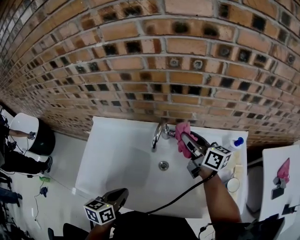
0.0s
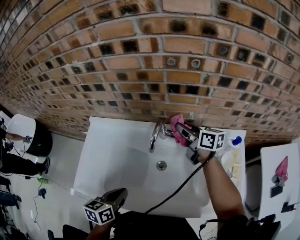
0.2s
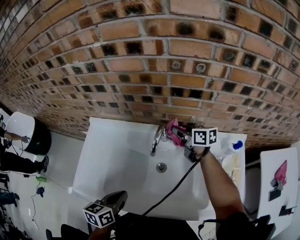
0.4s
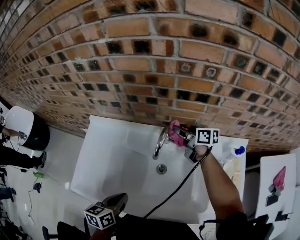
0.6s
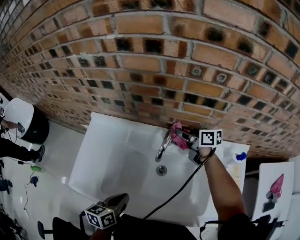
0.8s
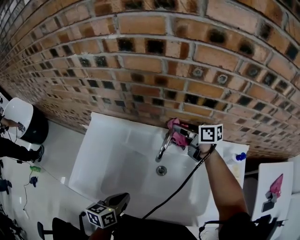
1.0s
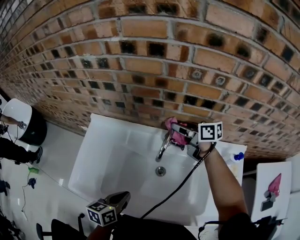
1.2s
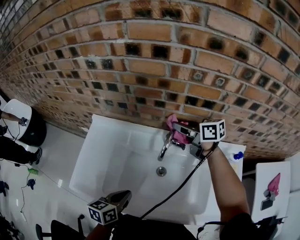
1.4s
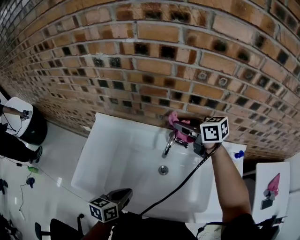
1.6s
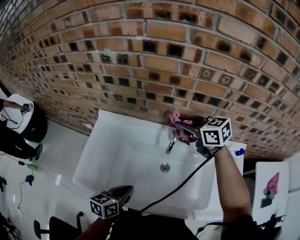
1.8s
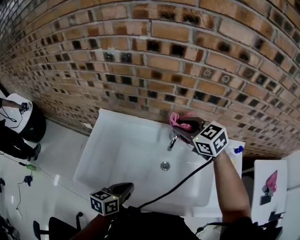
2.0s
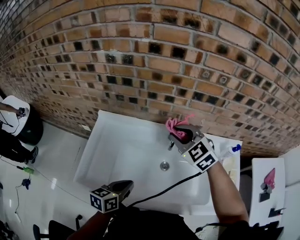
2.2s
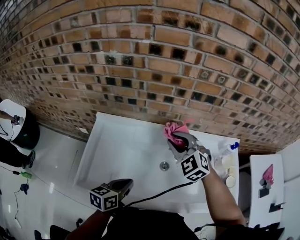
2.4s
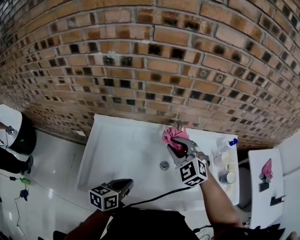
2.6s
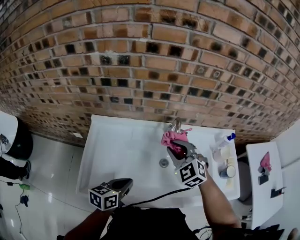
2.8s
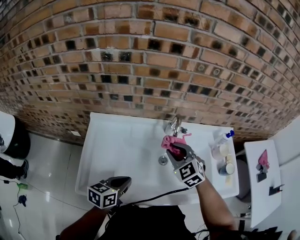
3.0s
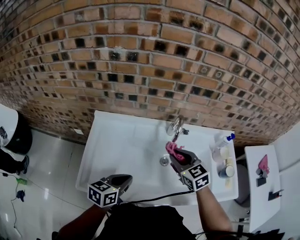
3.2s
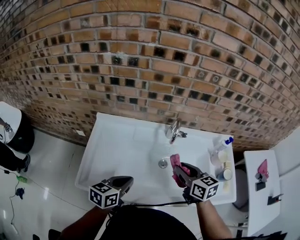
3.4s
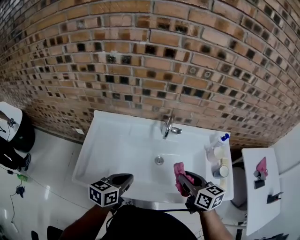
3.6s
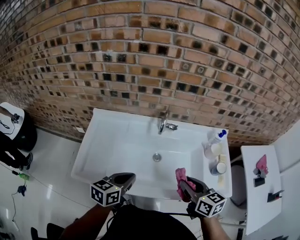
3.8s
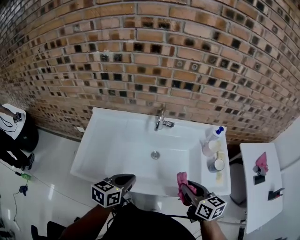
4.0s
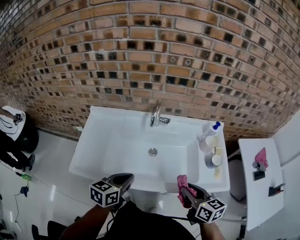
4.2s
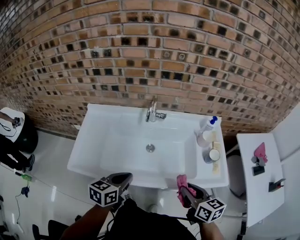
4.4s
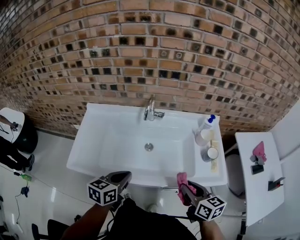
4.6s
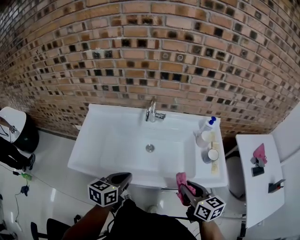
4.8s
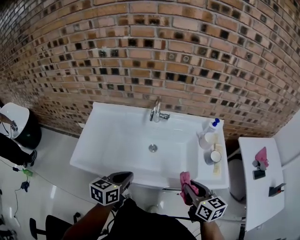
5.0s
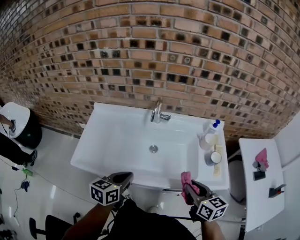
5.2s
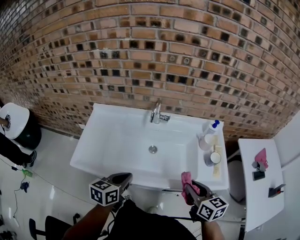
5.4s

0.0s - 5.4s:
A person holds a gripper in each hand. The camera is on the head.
0.0s - 1.4s: The right gripper travels forward and to the left by some 10 cm, and turns by roughly 30 degrees.
1.4s - 2.8s: The left gripper changes place by about 5 cm. Meanwhile the right gripper changes place by some 20 cm, and twists roughly 60 degrees counterclockwise, seen from behind.
2.8s - 4.0s: The left gripper heads to the right and backward, covering some 10 cm; the right gripper heads backward and to the right, covering roughly 30 cm, and twists some 60 degrees clockwise, seen from behind.
4.0s - 5.4s: The right gripper shifts some 5 cm to the right.

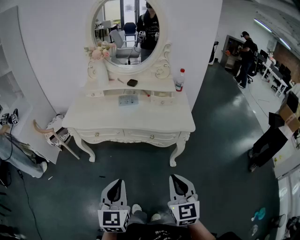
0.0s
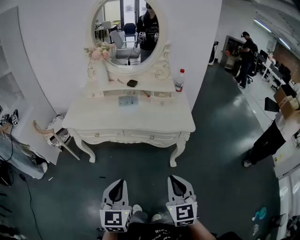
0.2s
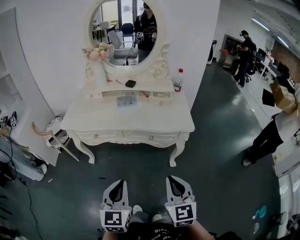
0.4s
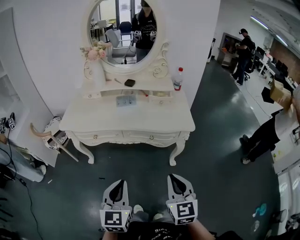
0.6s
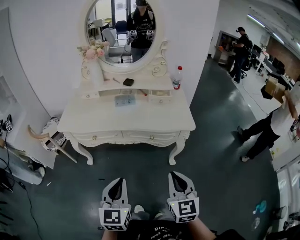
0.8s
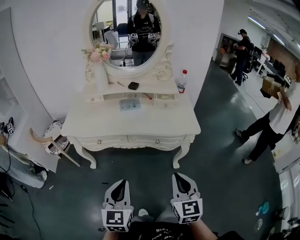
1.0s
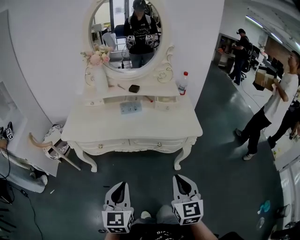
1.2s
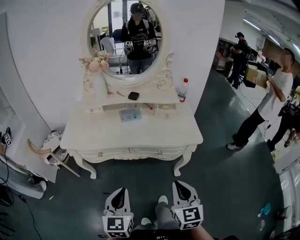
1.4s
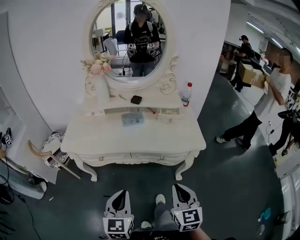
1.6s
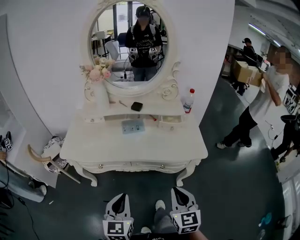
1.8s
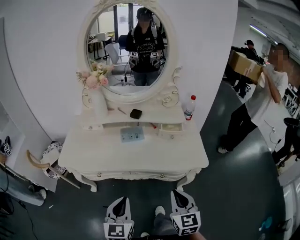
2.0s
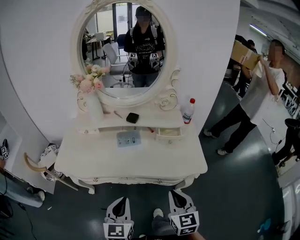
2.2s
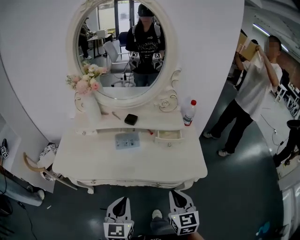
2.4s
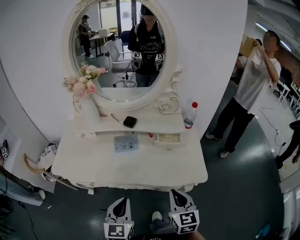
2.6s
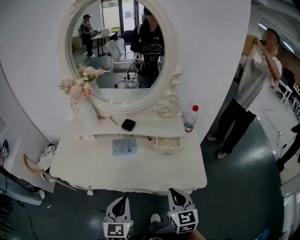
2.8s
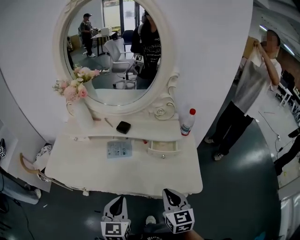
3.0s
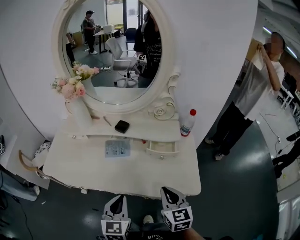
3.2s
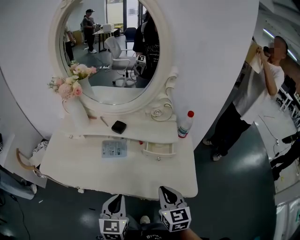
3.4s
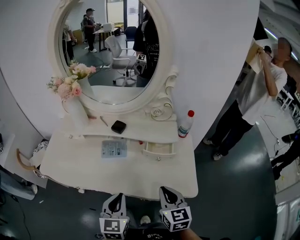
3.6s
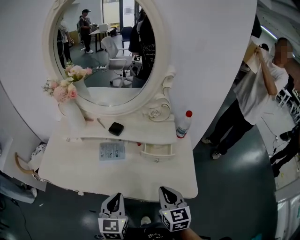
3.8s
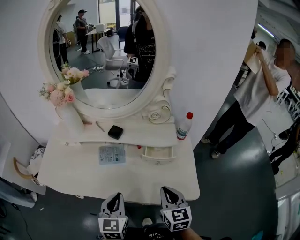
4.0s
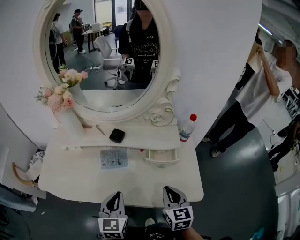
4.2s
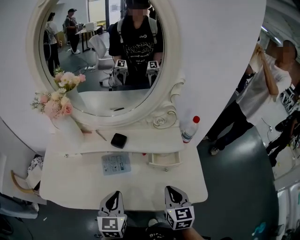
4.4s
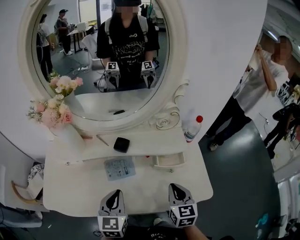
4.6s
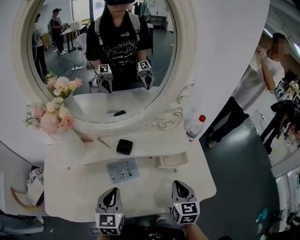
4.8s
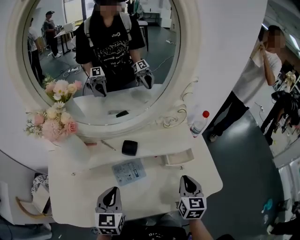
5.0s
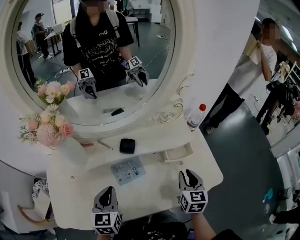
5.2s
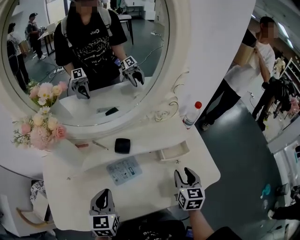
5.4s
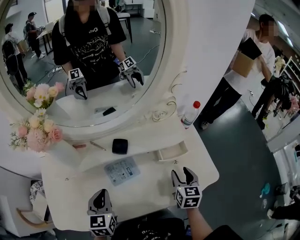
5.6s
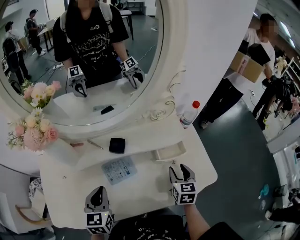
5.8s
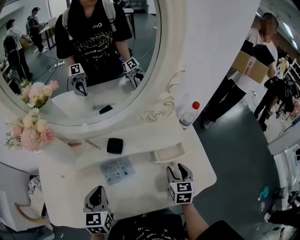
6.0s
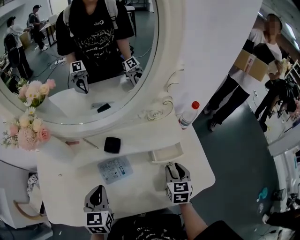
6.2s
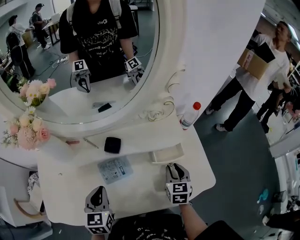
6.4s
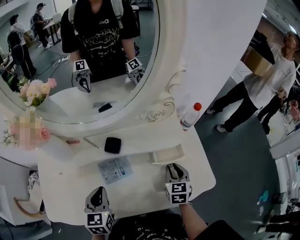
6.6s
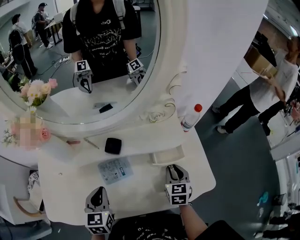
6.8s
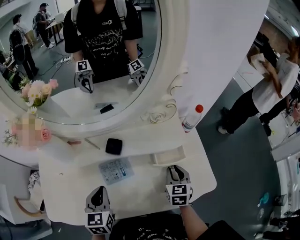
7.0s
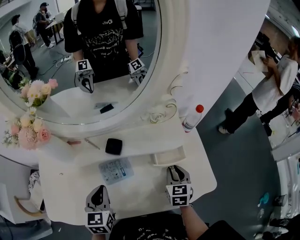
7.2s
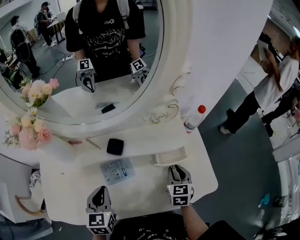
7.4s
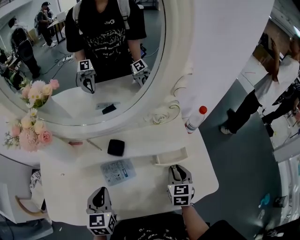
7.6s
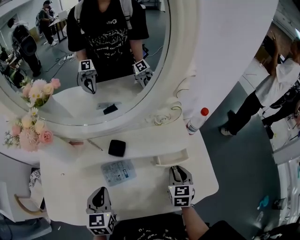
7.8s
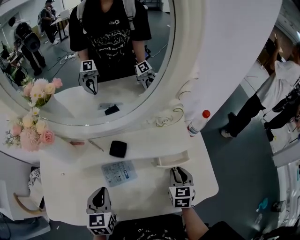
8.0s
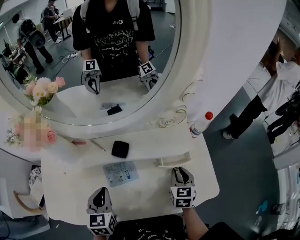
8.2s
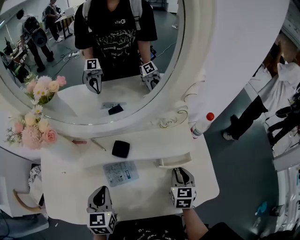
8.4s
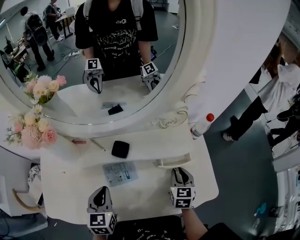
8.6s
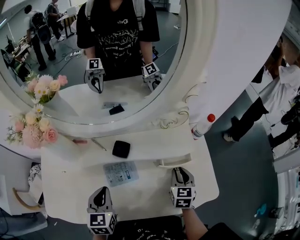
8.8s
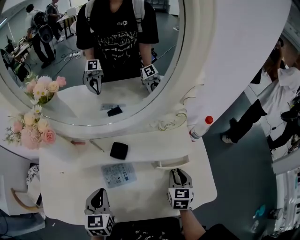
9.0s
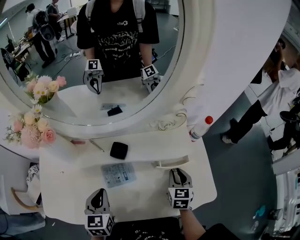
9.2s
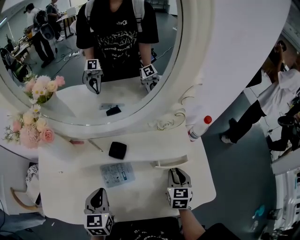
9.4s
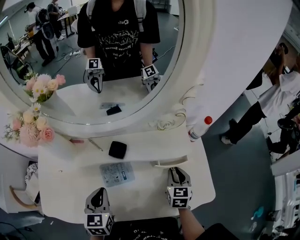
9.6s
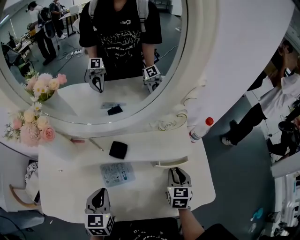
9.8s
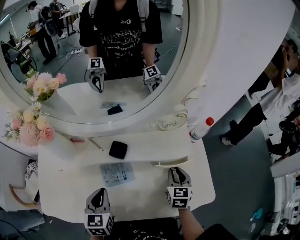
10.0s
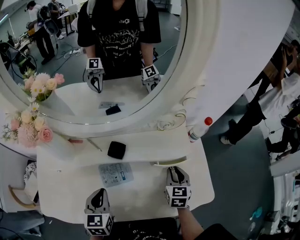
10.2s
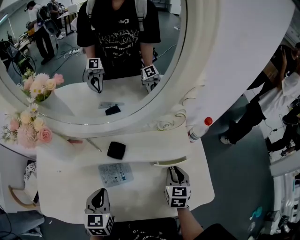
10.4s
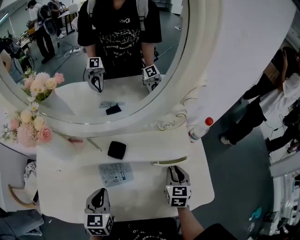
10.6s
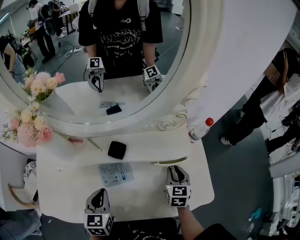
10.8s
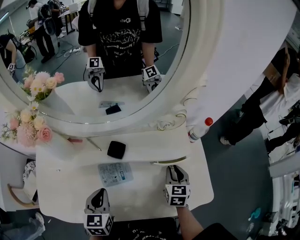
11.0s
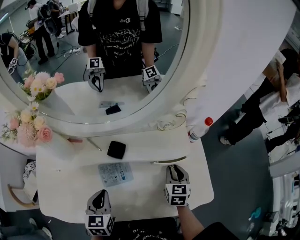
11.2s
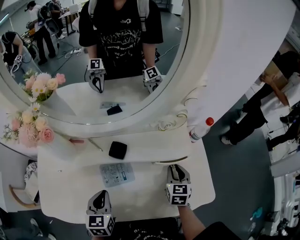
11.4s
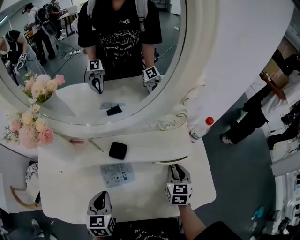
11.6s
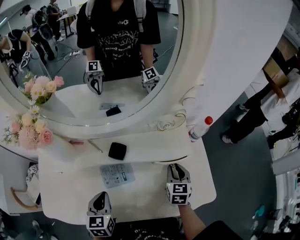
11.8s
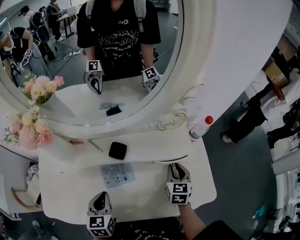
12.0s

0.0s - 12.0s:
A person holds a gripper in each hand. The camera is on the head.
0.0s - 1.6s: The grippers both shift forward and to the left by approximately 10 cm.
1.6s - 3.0s: The right gripper travels forward by some 25 cm; the left gripper moves forward and to the right, some 25 cm.
3.0s - 4.4s: Both grippers move forward, roughly 10 cm.
4.4s - 6.0s: The right gripper shifts some 10 cm forward and downward, rotates roughly 20 degrees, and opens up. Meanwhile the left gripper heads to the left and forward, covering roughly 15 cm.
6.0s - 7.6s: The right gripper closes up.
7.6s - 12.0s: The grippers make only small movements.

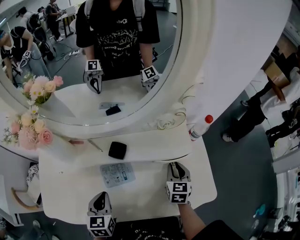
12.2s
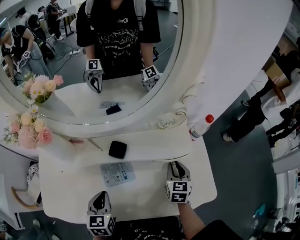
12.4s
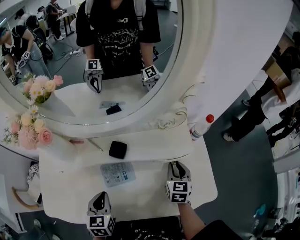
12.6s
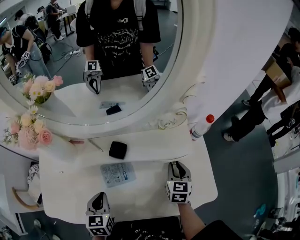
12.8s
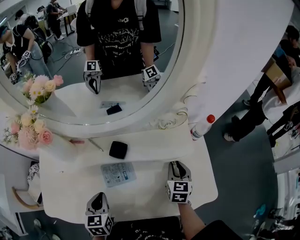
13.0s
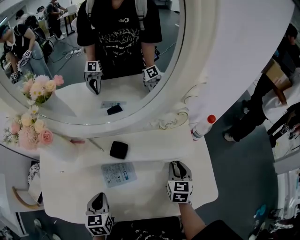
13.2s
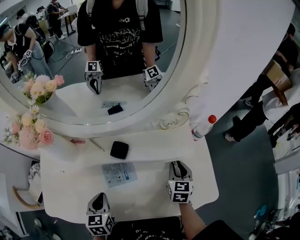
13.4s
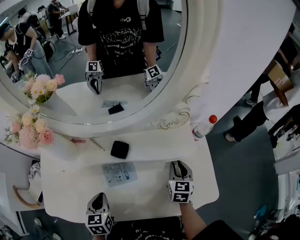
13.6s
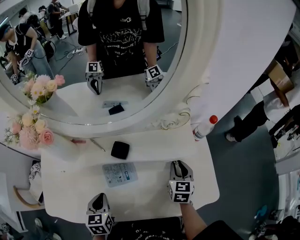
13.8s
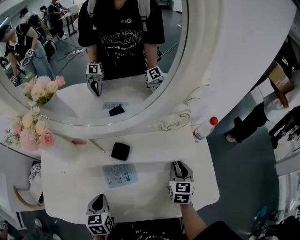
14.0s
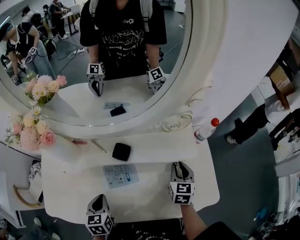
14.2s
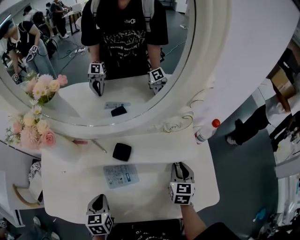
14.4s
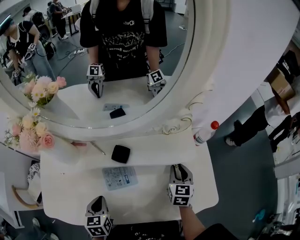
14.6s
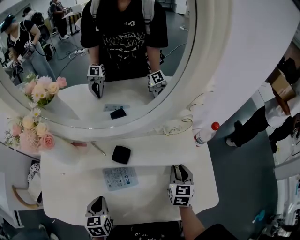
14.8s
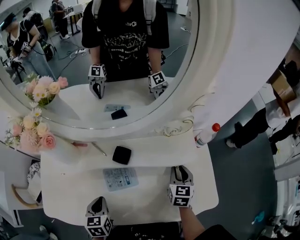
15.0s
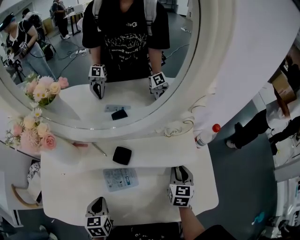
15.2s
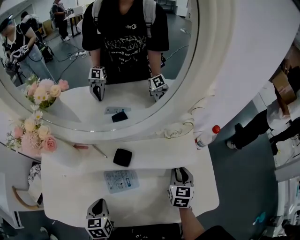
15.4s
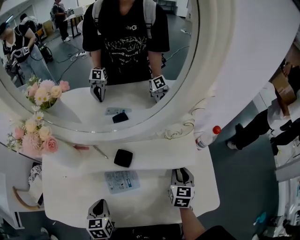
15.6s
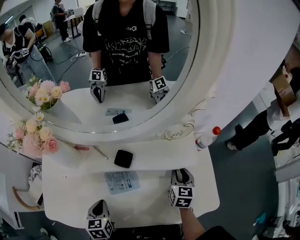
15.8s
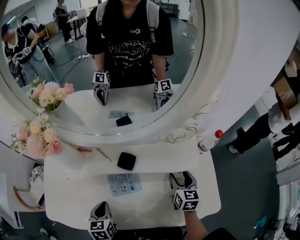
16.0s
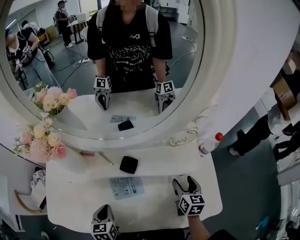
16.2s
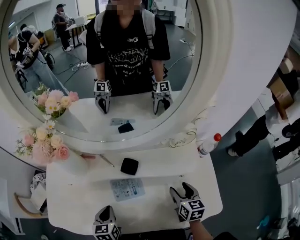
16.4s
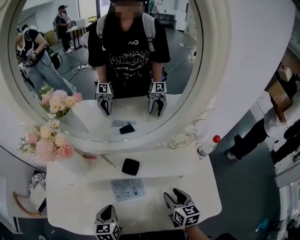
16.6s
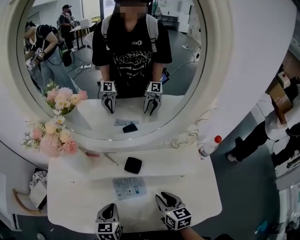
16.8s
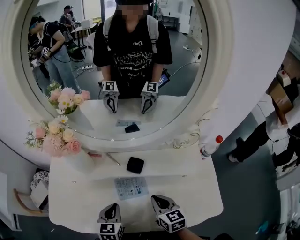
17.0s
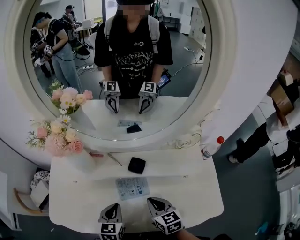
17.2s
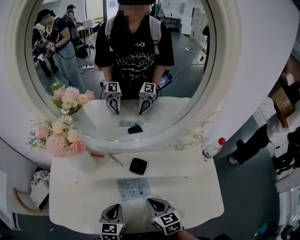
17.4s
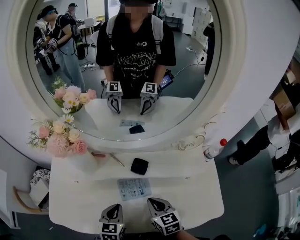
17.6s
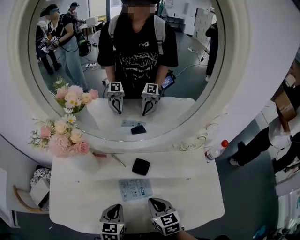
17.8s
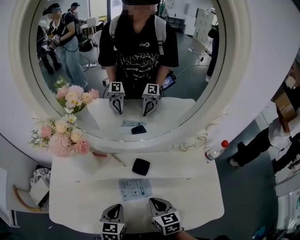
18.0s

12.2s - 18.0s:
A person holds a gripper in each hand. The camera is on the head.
12.2s - 13.6s: The grippers make only small movements.
13.6s - 15.0s: Neither gripper changes place.
15.0s - 16.6s: The right gripper is displaced to the left and backward by some 10 cm, rotates roughly 20 degrees, and opens.
16.6s - 18.0s: The right gripper is displaced to the left by roughly 10 cm, and closes up.
